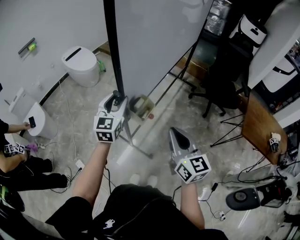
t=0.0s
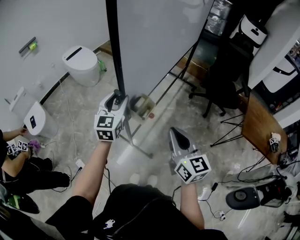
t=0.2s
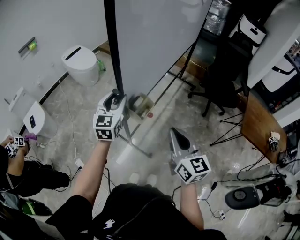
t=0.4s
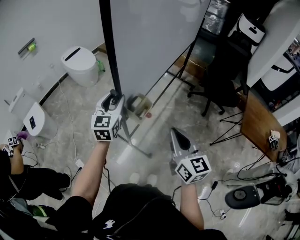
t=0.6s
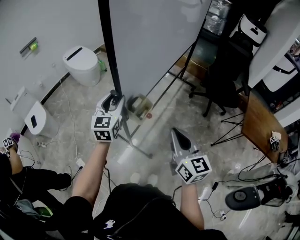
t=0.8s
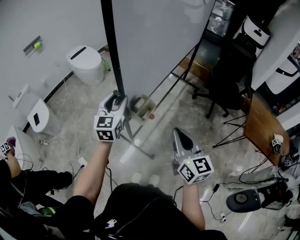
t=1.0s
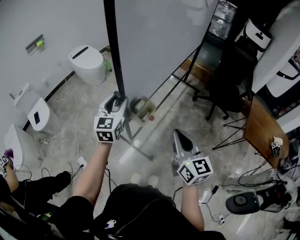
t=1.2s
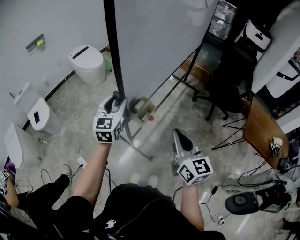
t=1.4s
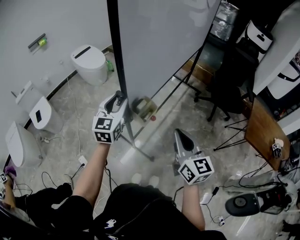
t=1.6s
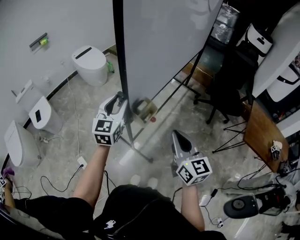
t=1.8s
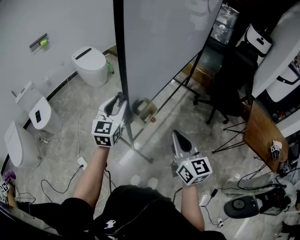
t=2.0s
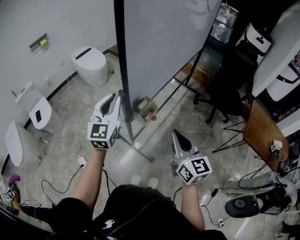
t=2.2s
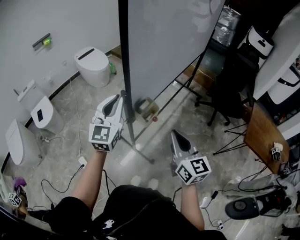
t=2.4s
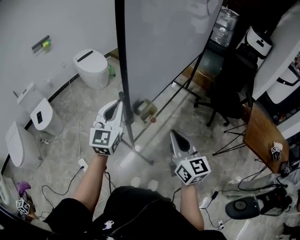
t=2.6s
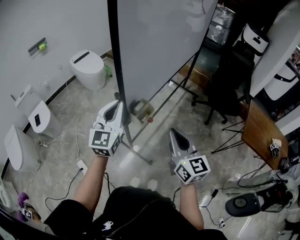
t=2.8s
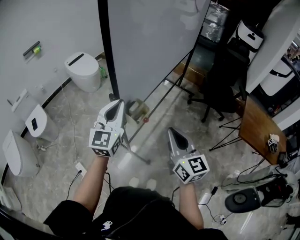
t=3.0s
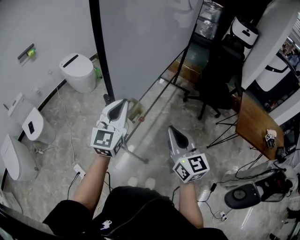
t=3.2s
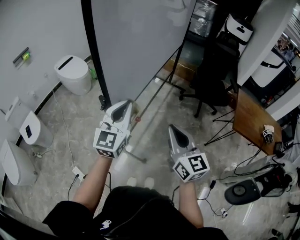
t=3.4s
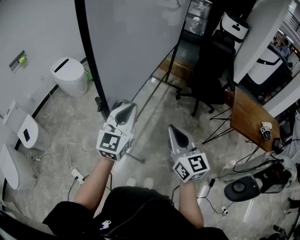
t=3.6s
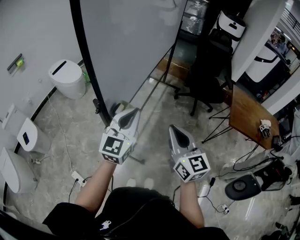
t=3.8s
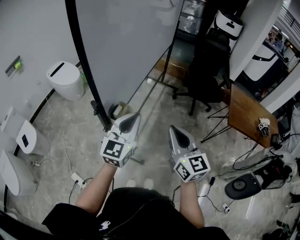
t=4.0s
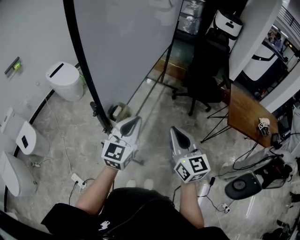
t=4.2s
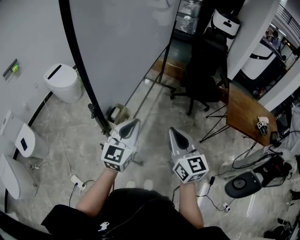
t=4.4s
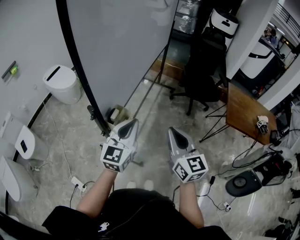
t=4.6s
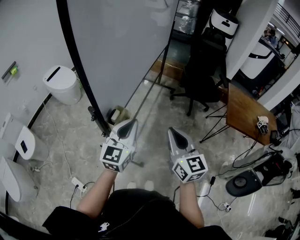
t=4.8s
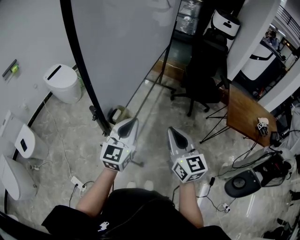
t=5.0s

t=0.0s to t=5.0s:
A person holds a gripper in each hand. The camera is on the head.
t=0.0s to t=1.6s: There are only small adjustments of the grippers.
t=1.6s to t=3.4s: The left gripper heads to the right, backward and upward, covering roughly 15 cm, and closes.
t=3.4s to t=5.0s: The left gripper travels to the right and downward by approximately 10 cm.

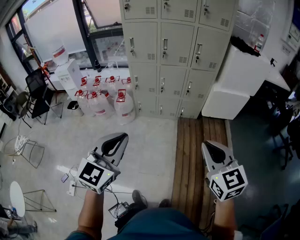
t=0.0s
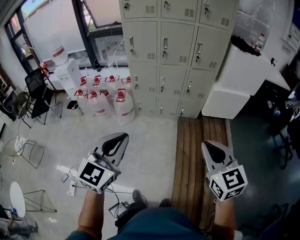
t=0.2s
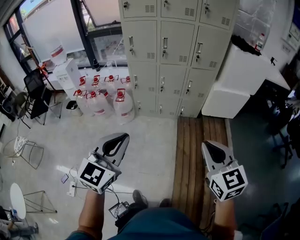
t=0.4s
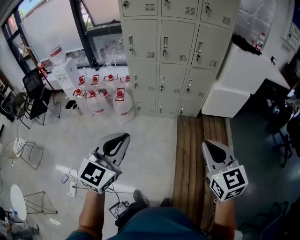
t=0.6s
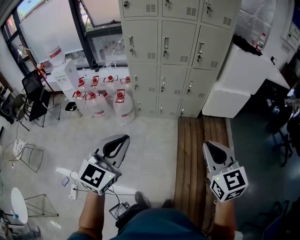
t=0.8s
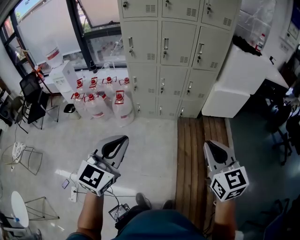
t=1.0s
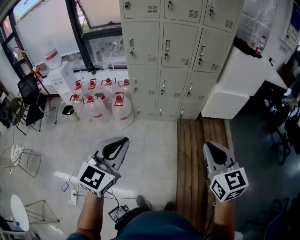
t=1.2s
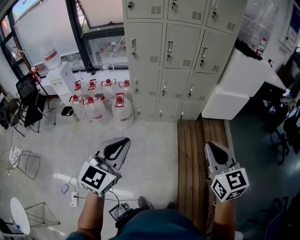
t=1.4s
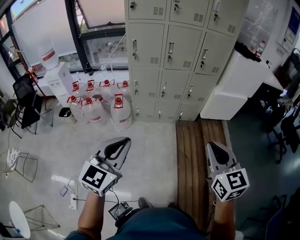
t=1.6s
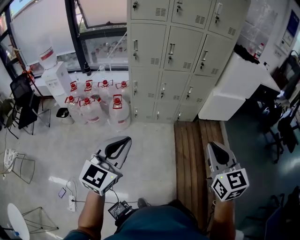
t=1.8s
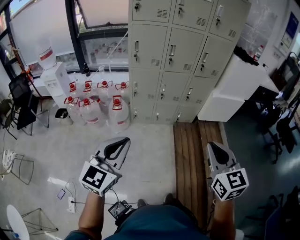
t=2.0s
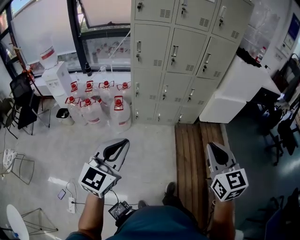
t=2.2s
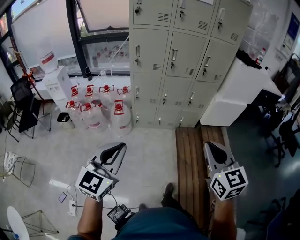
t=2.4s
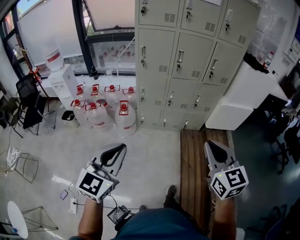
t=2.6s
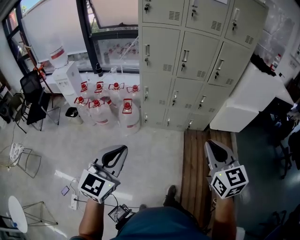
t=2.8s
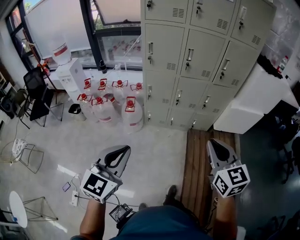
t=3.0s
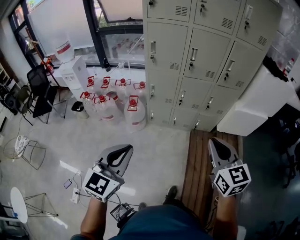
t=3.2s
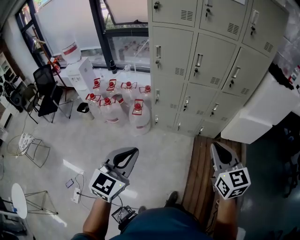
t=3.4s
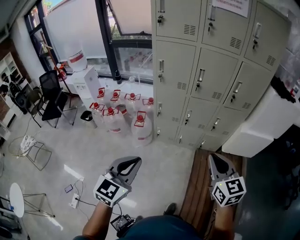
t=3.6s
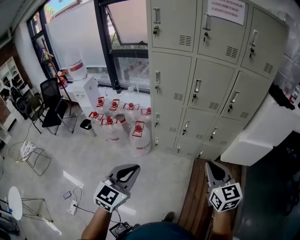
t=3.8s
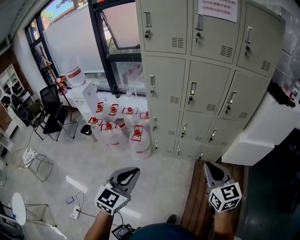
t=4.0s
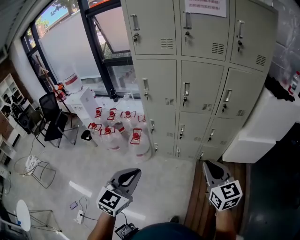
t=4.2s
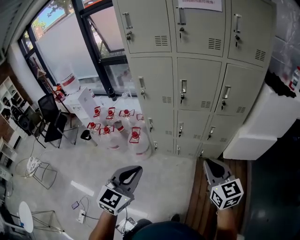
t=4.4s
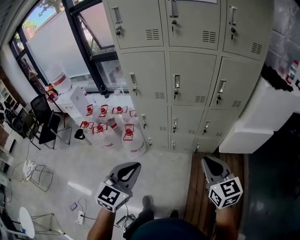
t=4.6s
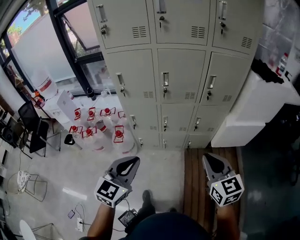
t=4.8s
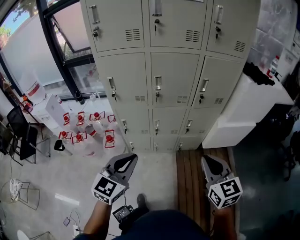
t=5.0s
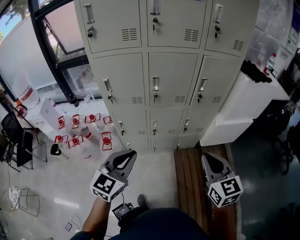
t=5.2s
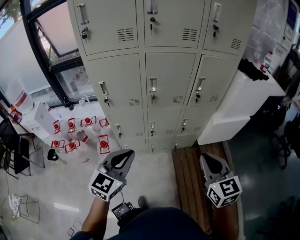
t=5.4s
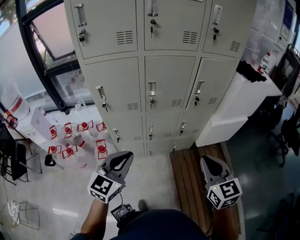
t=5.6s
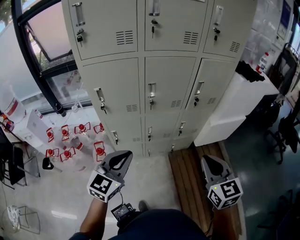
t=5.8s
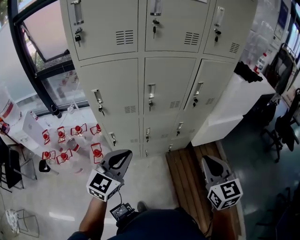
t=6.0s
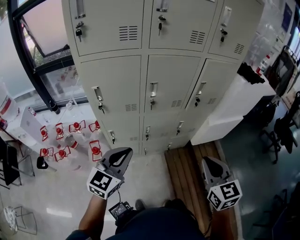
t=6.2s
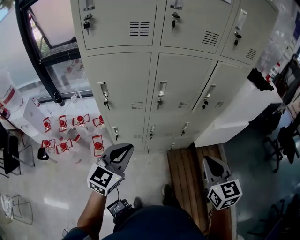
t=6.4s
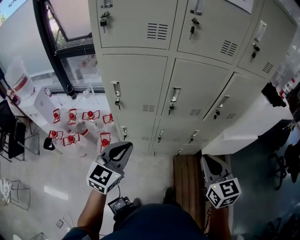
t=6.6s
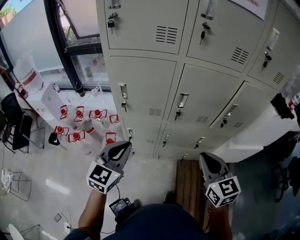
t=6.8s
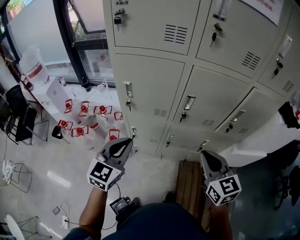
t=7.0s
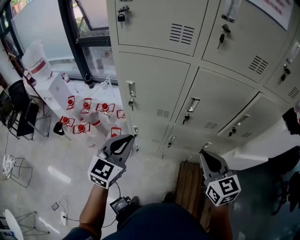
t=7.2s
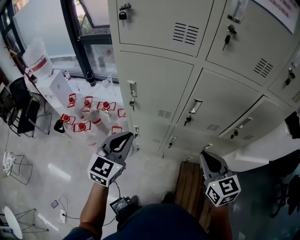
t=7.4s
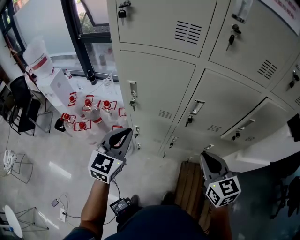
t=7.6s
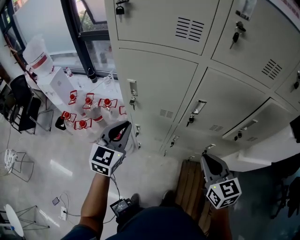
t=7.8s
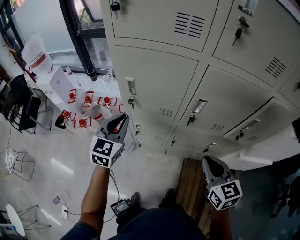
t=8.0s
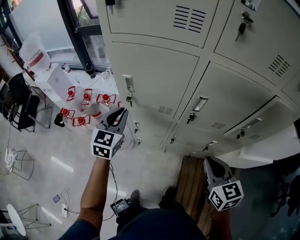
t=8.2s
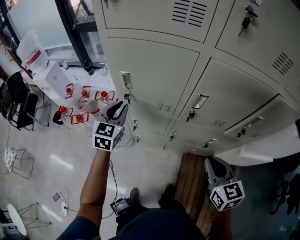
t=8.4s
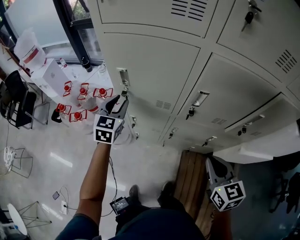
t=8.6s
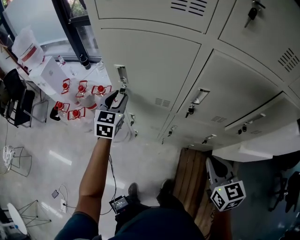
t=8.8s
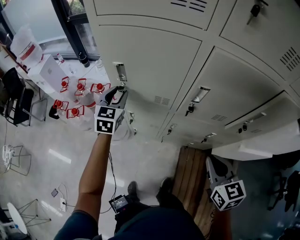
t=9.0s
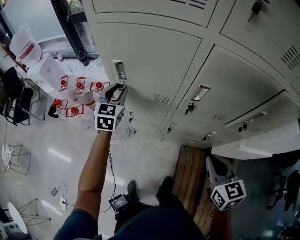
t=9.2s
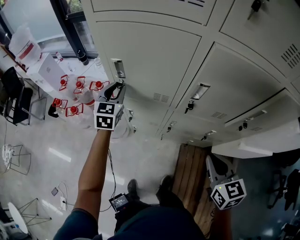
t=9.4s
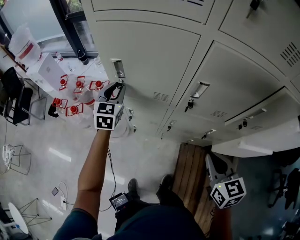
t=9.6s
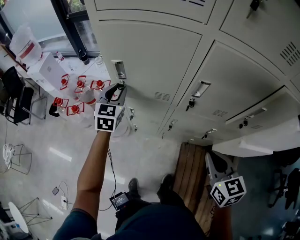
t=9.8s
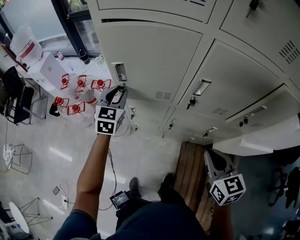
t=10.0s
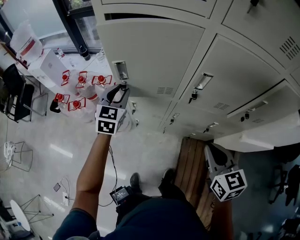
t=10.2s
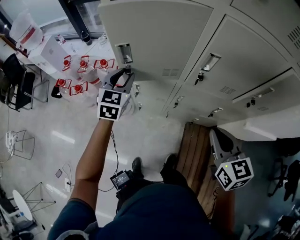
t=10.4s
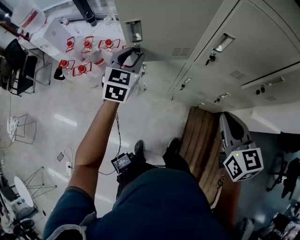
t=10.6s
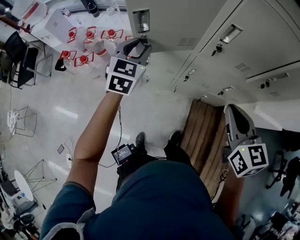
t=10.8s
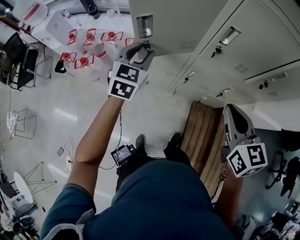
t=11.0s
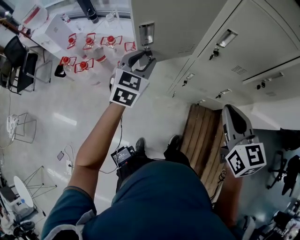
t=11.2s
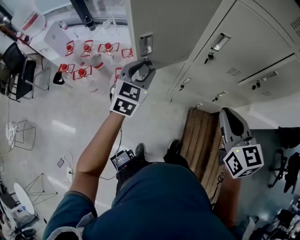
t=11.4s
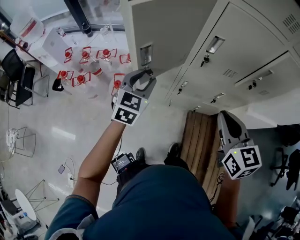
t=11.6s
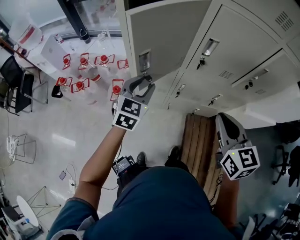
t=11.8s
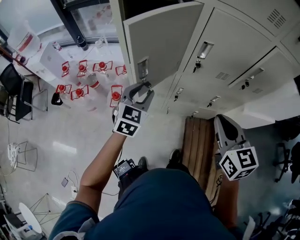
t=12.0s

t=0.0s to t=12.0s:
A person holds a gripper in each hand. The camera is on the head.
t=0.0s to t=1.6s: Both grippers travel together to the left and forward, approximately 15 cm.
t=1.6s to t=3.0s: The left gripper travels forward by roughly 10 cm. The right gripper travels forward by about 15 cm.
t=3.0s to t=4.4s: The two grippers go some 25 cm forward and to the right.
t=4.4s to t=6.0s: The left gripper shifts by roughly 25 cm, and turns by approximately 30 degrees; the right gripper shifts by approximately 10 cm, and rotates roughly 30 degrees.
t=6.0s to t=7.6s: The left gripper ends up approximately 20 cm from where it was, and changes its angle by about 30 degrees; the right gripper shifts by some 25 cm, and changes its angle by about 30 degrees.
t=7.6s to t=9.0s: The right gripper is displaced downward and to the right by approximately 10 cm, while the left gripper moves forward and downward, about 25 cm, and opens.
t=9.0s to t=10.4s: The left gripper travels backward by about 5 cm.
t=10.4s to t=12.0s: The left gripper heads backward and to the right, covering some 15 cm; the right gripper heads backward, covering approximately 5 cm.

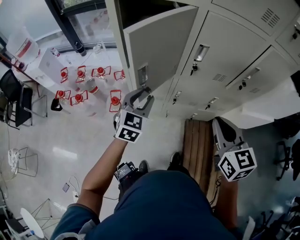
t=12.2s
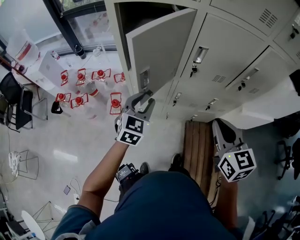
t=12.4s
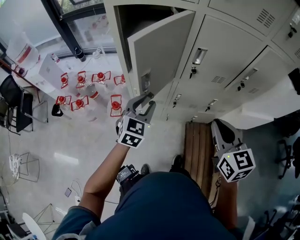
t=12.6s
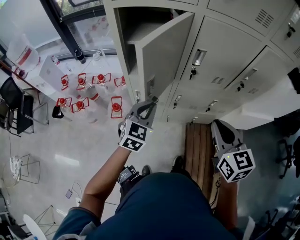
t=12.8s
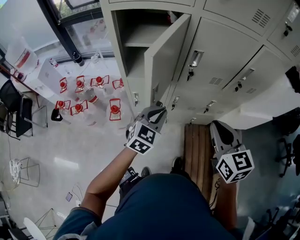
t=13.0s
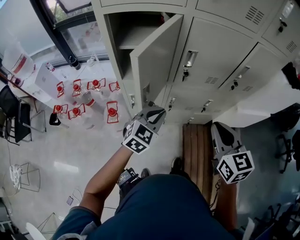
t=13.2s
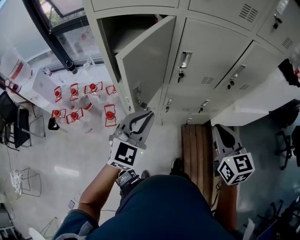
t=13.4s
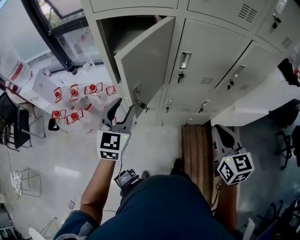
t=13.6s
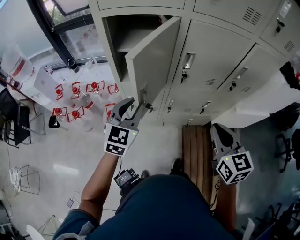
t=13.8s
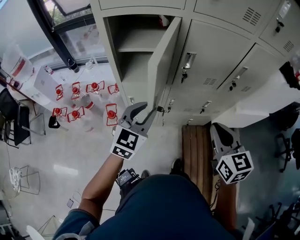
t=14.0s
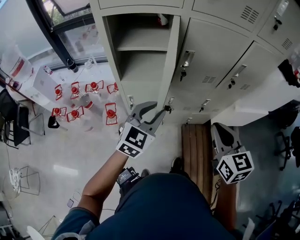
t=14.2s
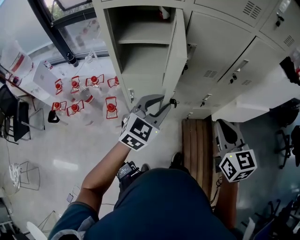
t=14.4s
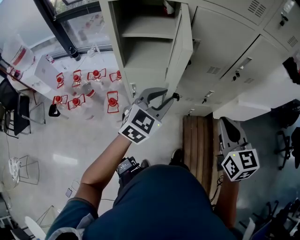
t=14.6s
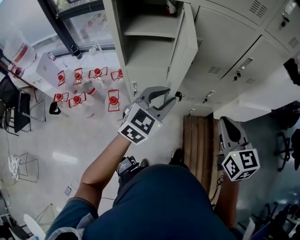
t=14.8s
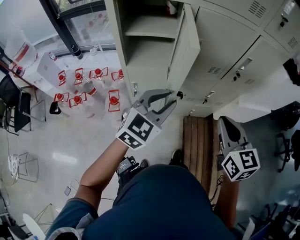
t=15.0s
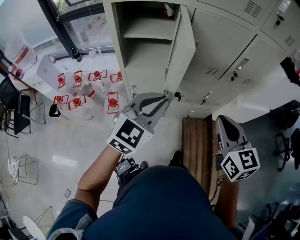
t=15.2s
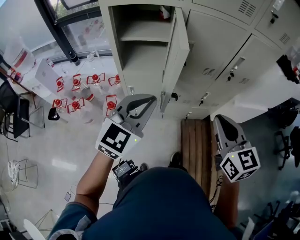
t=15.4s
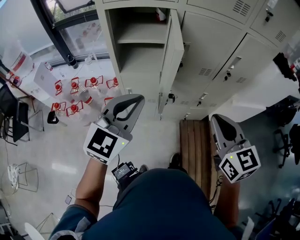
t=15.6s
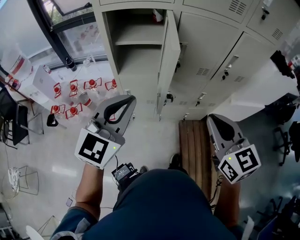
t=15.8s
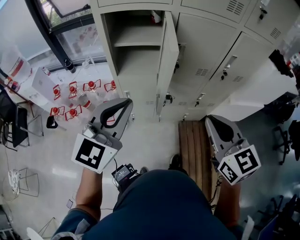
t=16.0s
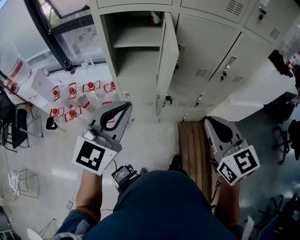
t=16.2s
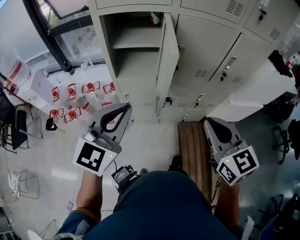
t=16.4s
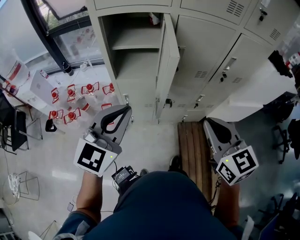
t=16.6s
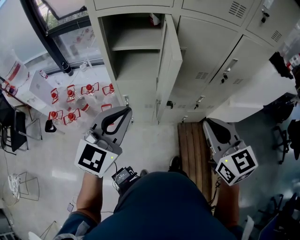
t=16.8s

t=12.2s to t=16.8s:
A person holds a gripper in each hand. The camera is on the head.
t=12.2s to t=13.8s: The left gripper moves upward, about 5 cm, reaches roughly 10 cm to the right, then returns, and closes, then opens again.
t=13.8s to t=15.2s: The right gripper shifts approximately 5 cm backward; the left gripper goes some 15 cm to the right, backward and upward, and closes.
t=15.2s to t=16.8s: The left gripper travels to the left and upward by some 10 cm.

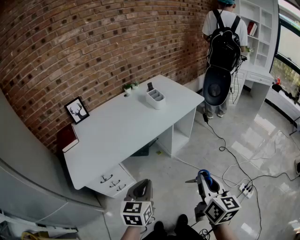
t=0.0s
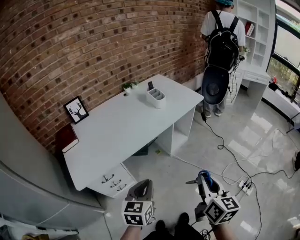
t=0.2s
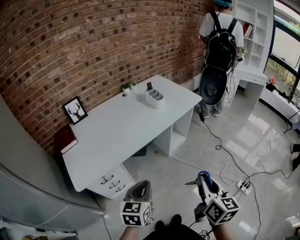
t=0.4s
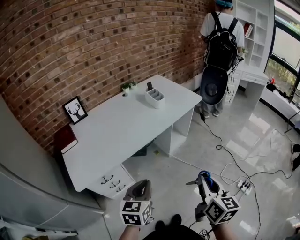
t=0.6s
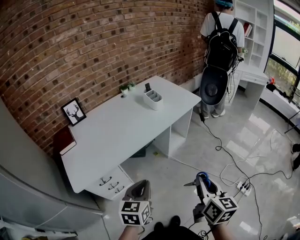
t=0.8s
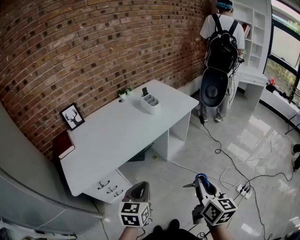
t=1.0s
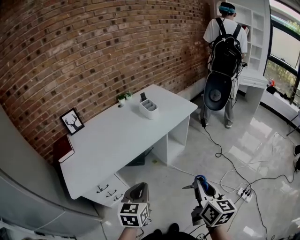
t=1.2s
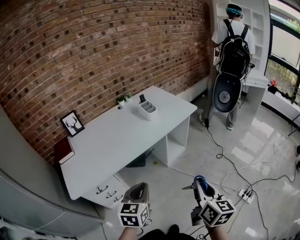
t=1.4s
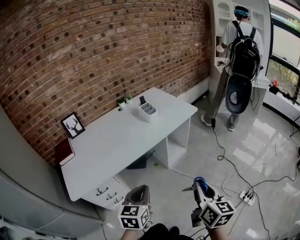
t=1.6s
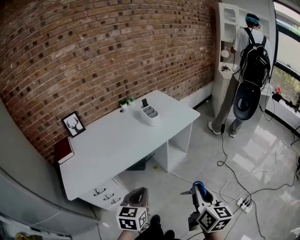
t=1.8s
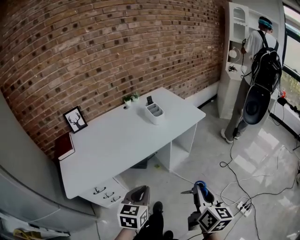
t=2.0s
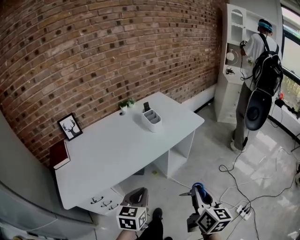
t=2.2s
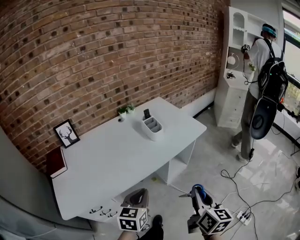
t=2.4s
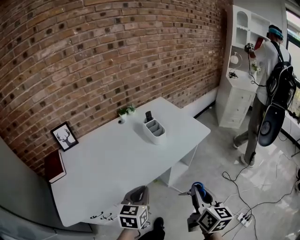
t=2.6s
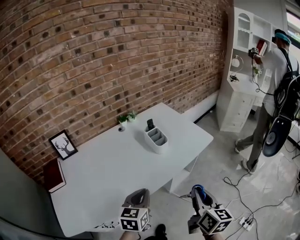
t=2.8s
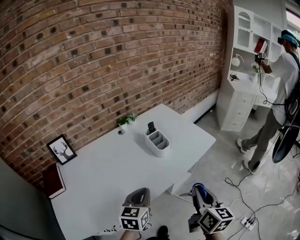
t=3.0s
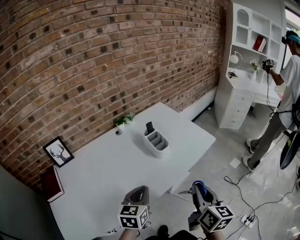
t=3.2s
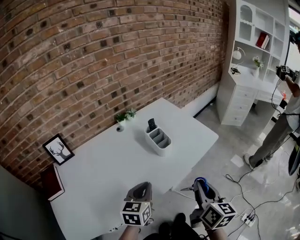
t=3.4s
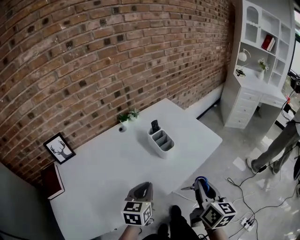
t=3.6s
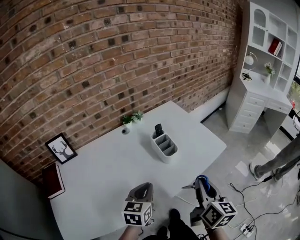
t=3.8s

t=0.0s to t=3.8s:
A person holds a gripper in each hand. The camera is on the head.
t=0.0s to t=1.2s: The grippers move only a little.
t=1.2s to t=2.6s: Both grippers travel together forward, approximately 25 cm.
t=2.6s to t=3.8s: Both grippers travel together forward, some 20 cm.
